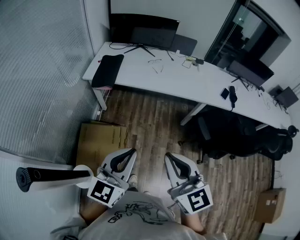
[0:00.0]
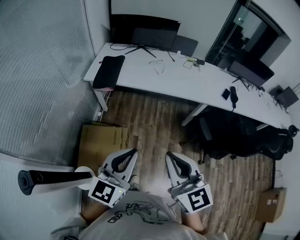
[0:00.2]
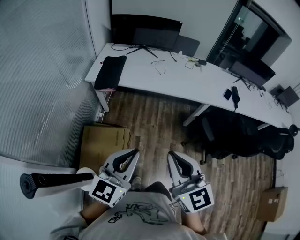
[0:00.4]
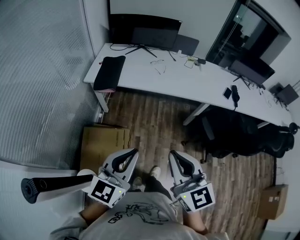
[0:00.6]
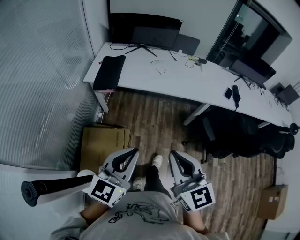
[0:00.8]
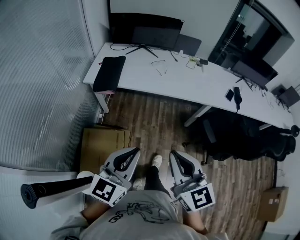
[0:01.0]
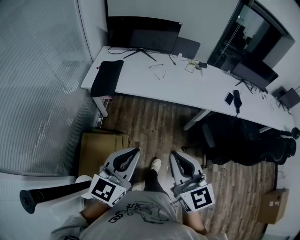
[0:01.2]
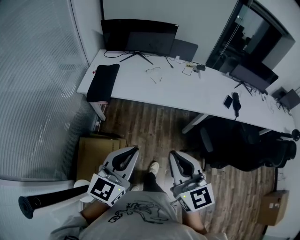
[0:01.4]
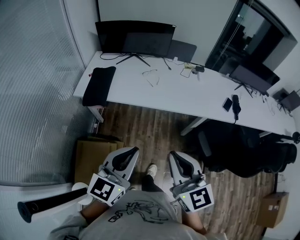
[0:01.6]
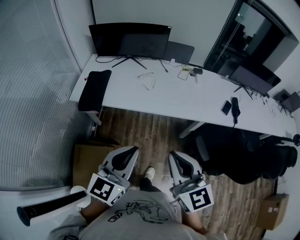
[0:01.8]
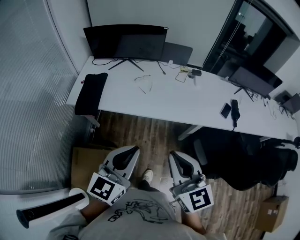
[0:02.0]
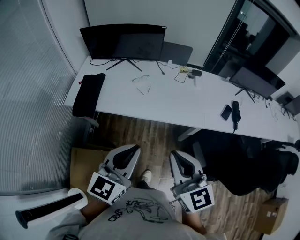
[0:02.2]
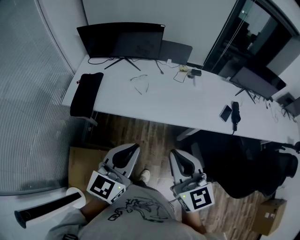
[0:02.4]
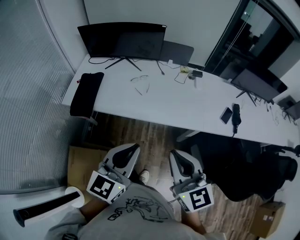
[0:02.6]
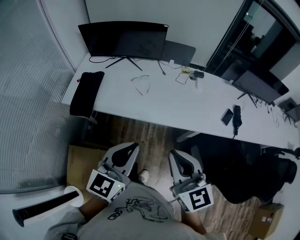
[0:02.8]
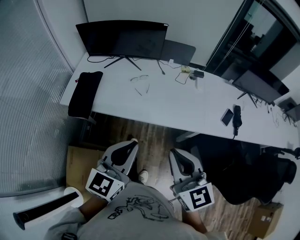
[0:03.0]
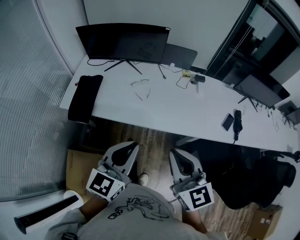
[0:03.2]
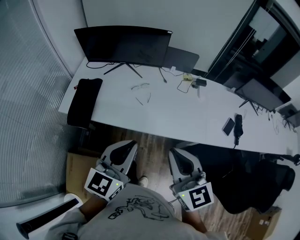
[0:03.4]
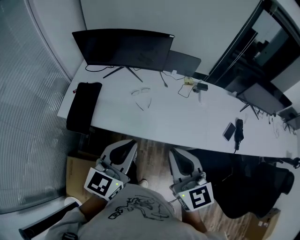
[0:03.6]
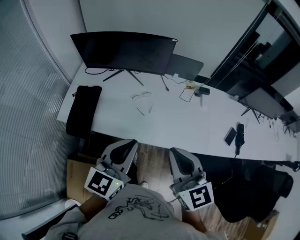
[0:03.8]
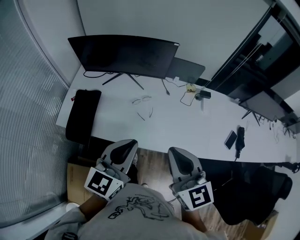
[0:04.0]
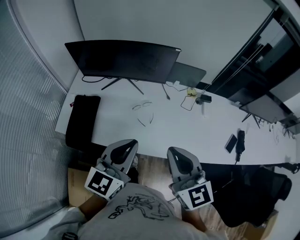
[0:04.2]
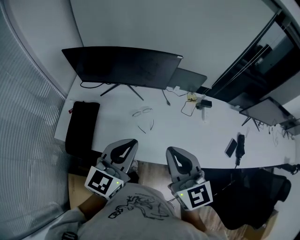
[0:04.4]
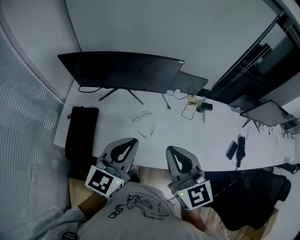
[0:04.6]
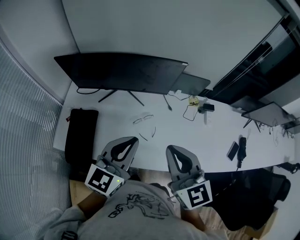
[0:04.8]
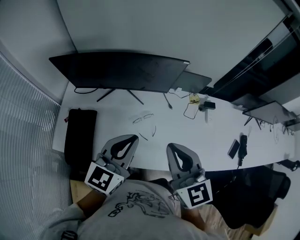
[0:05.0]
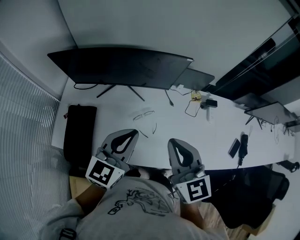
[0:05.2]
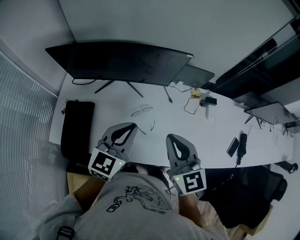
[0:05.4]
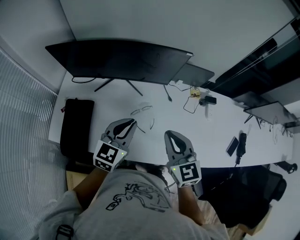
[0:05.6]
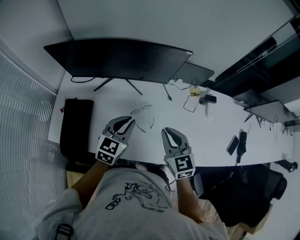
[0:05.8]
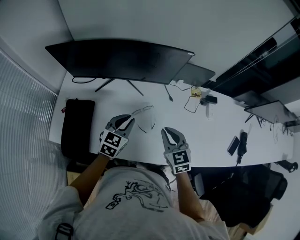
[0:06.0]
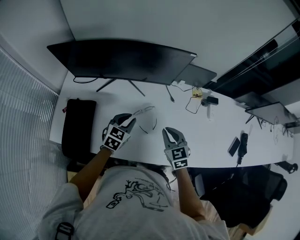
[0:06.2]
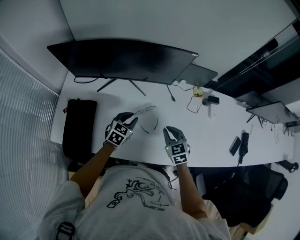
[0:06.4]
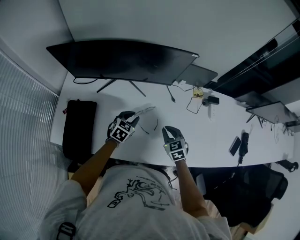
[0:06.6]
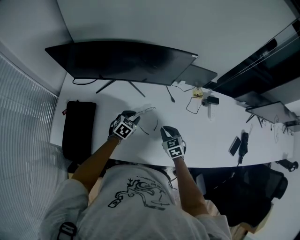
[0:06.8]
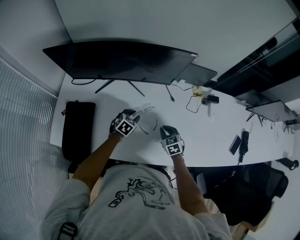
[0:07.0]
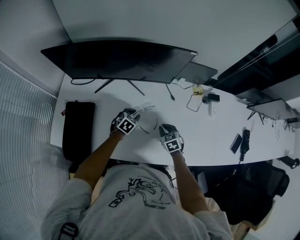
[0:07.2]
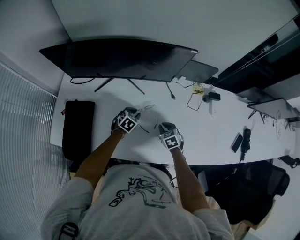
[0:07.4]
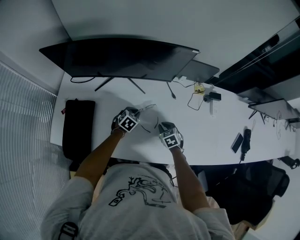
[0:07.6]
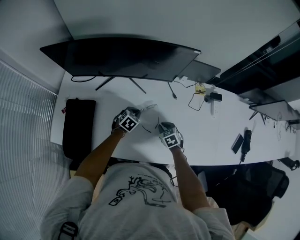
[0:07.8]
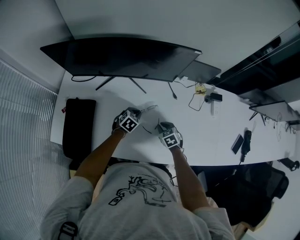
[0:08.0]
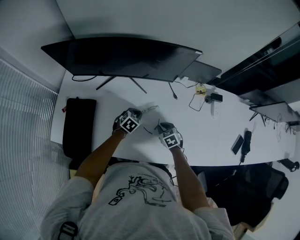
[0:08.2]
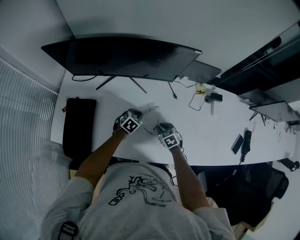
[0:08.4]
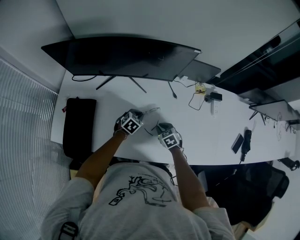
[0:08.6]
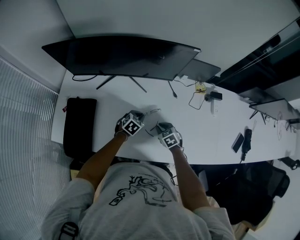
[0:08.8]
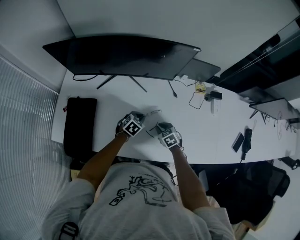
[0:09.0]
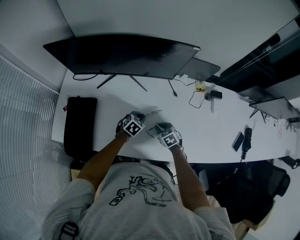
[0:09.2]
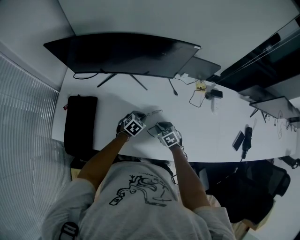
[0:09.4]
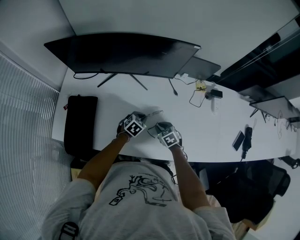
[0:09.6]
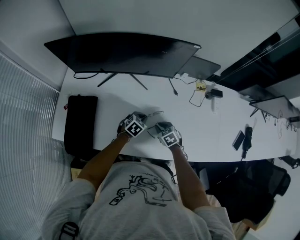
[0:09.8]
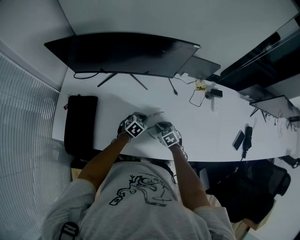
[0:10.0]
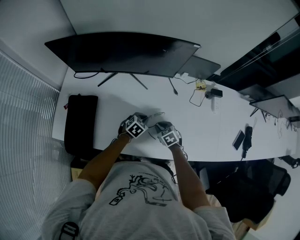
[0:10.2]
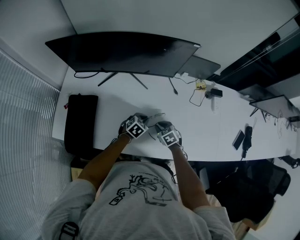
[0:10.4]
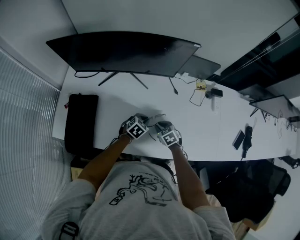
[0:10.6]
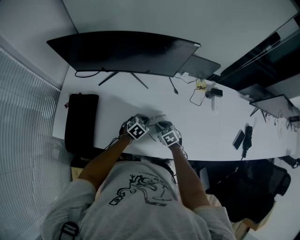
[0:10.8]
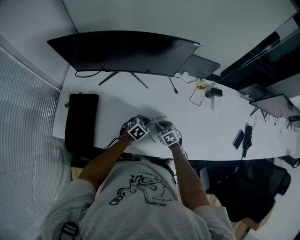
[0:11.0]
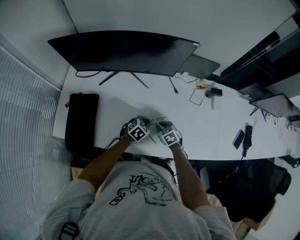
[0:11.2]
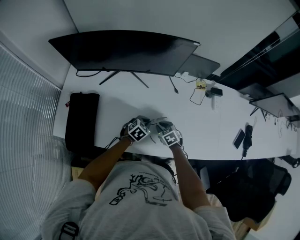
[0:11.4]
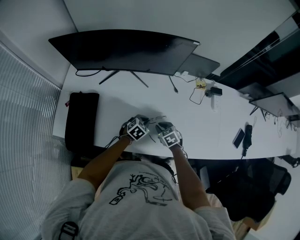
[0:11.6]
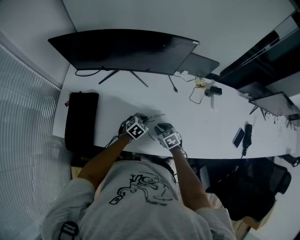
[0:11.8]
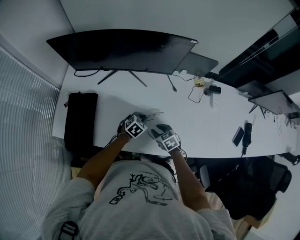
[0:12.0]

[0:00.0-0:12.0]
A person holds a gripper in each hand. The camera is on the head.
0:00.0 to 0:01.6: Both grippers travel together forward, approximately 20 cm.
0:01.6 to 0:03.0: Both grippers travel together forward and to the right, some 25 cm.
0:03.0 to 0:04.4: The grippers both shift forward by approximately 30 cm.
0:04.4 to 0:06.0: Both grippers move downward and forward, approximately 30 cm. The right gripper turns by approximately 20 degrees; the left gripper rotates roughly 20 degrees.
0:06.0 to 0:07.6: Both grippers travel together downward, roughly 20 cm. The left gripper swivels roughly 30 degrees; the right gripper turns by approximately 30 degrees.
0:07.6 to 0:09.0: There are only small adjustments of the grippers.
0:09.0 to 0:10.4: The grippers make only small movements.
0:10.4 to 0:12.0: The right gripper ends up approximately 5 cm from where it was.

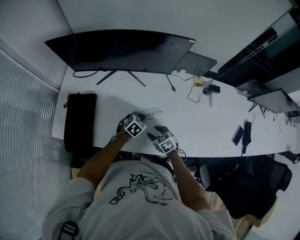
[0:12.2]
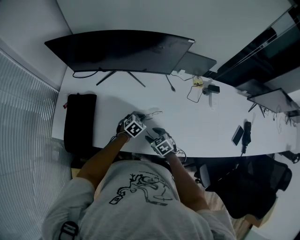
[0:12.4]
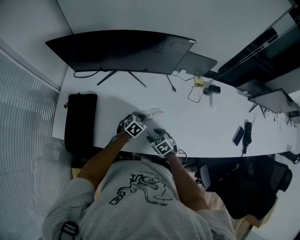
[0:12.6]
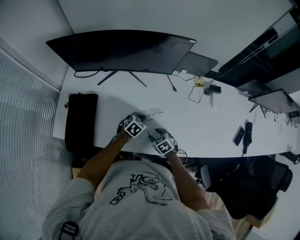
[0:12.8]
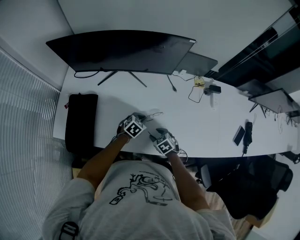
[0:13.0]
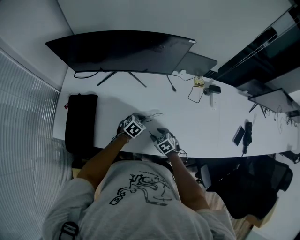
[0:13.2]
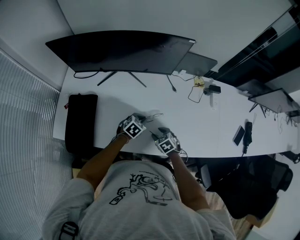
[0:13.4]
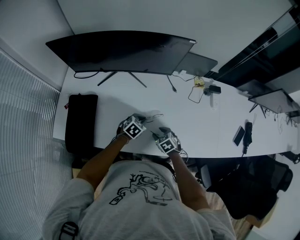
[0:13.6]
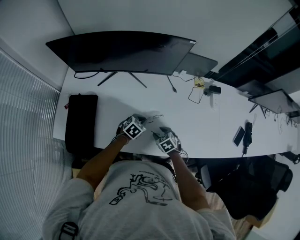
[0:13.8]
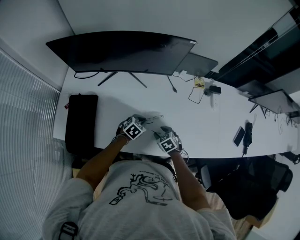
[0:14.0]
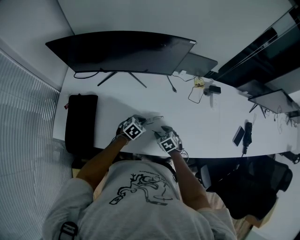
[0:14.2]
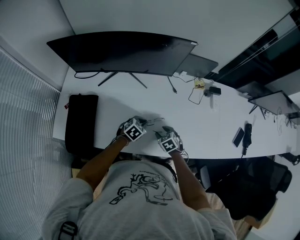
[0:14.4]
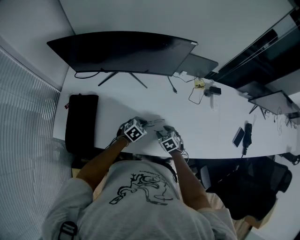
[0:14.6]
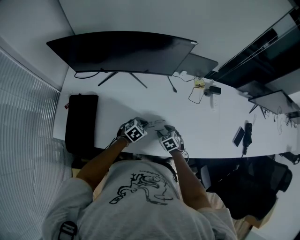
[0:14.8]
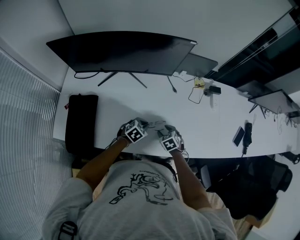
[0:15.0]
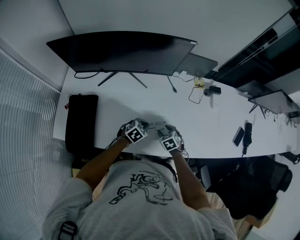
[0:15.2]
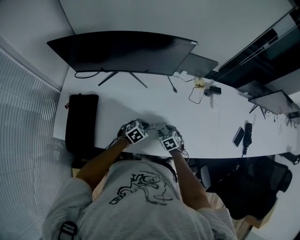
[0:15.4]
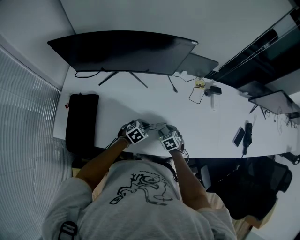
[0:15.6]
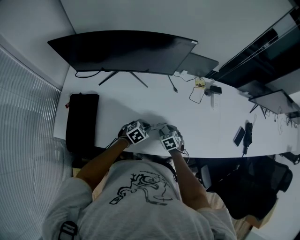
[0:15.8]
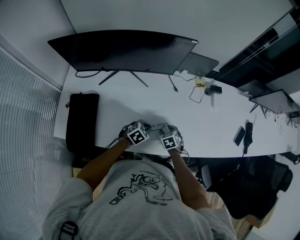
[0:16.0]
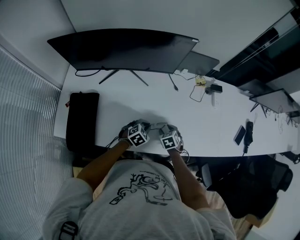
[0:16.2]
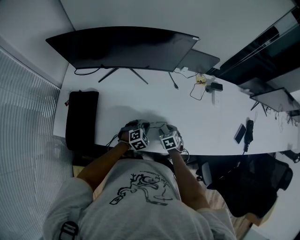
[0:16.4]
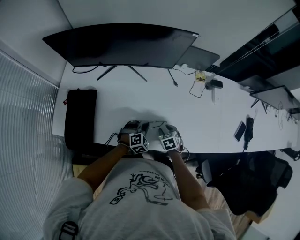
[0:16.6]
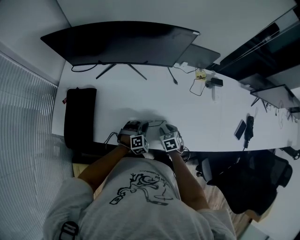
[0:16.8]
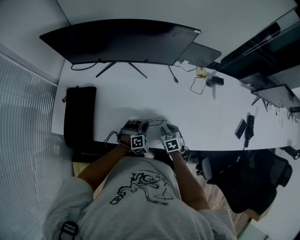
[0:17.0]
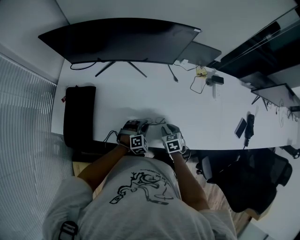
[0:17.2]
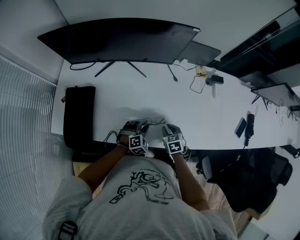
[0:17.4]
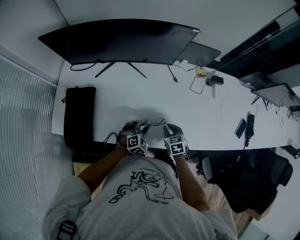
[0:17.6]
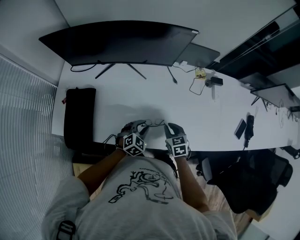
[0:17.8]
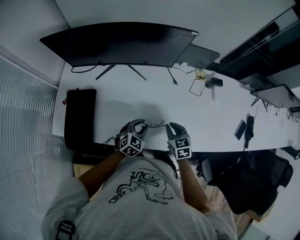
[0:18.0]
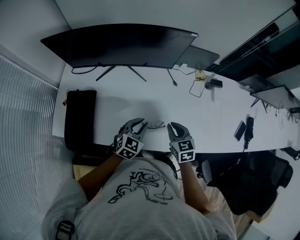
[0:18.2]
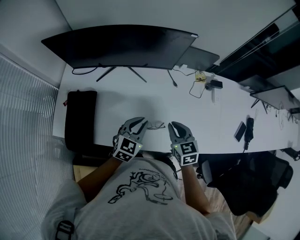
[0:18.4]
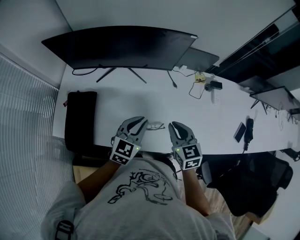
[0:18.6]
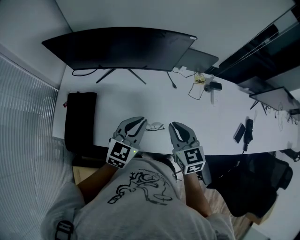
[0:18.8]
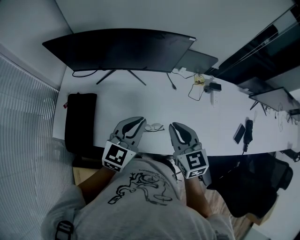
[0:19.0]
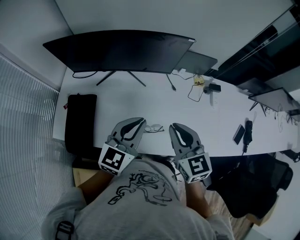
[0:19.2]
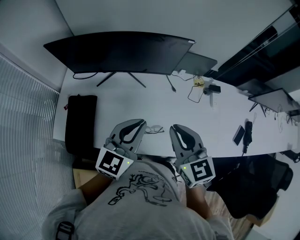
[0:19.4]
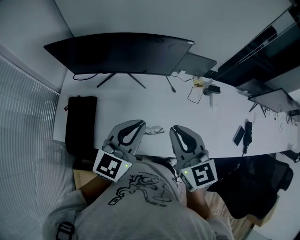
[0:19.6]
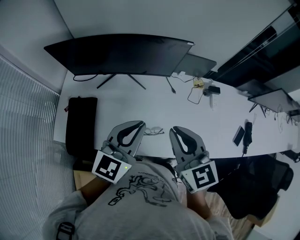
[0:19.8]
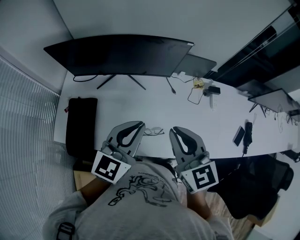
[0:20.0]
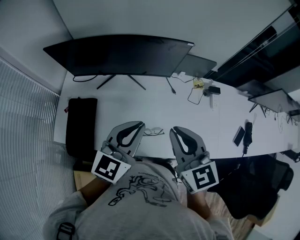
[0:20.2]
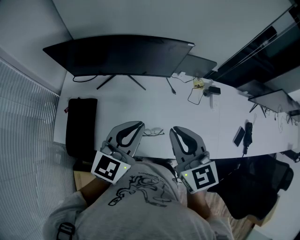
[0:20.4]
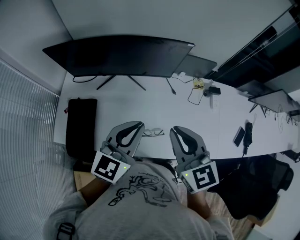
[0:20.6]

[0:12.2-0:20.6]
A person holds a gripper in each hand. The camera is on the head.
0:12.2 to 0:13.6: The grippers move only a little.
0:13.6 to 0:15.0: The grippers make only small movements.
0:15.0 to 0:16.4: The left gripper turns by approximately 20 degrees.
0:16.4 to 0:17.8: The right gripper heads upward, covering approximately 10 cm, and closes up. Meanwhile the left gripper opens up.
0:17.8 to 0:19.2: Both grippers travel together upward, some 30 cm. The left gripper tips its fingers upward by approximately 30 degrees, and closes; the right gripper turns by about 30 degrees.
0:19.2 to 0:20.6: The two grippers go about 5 cm upward.

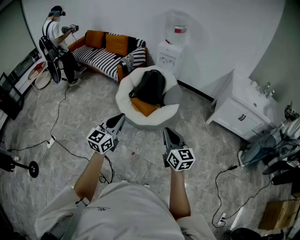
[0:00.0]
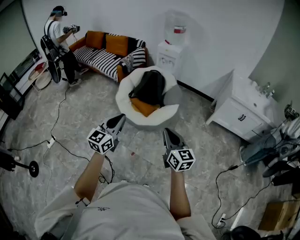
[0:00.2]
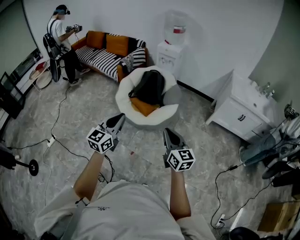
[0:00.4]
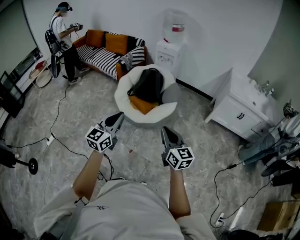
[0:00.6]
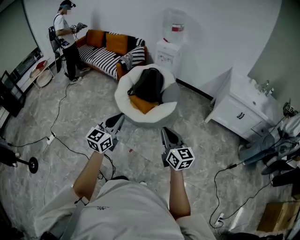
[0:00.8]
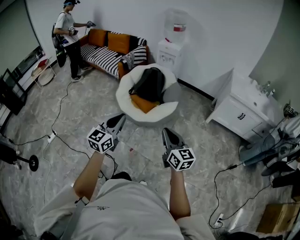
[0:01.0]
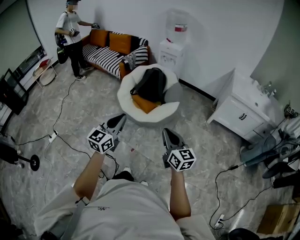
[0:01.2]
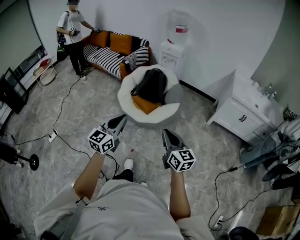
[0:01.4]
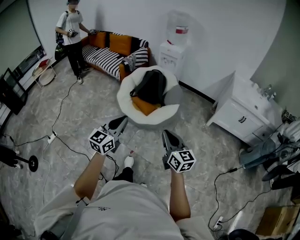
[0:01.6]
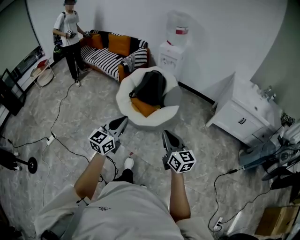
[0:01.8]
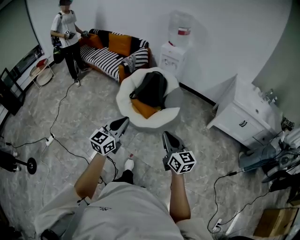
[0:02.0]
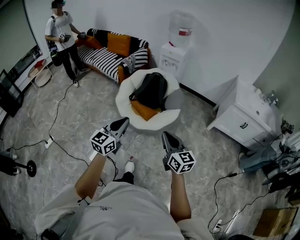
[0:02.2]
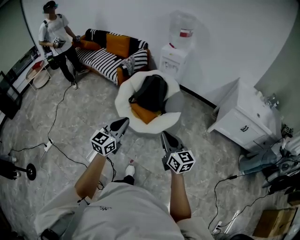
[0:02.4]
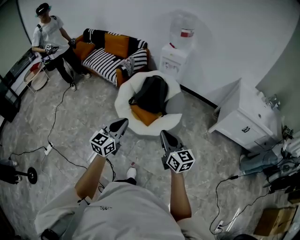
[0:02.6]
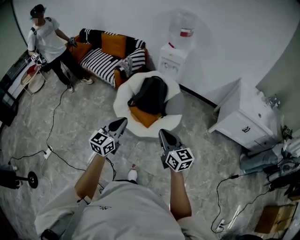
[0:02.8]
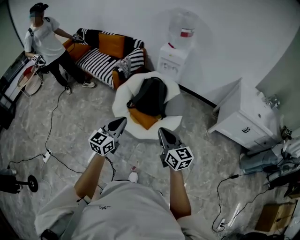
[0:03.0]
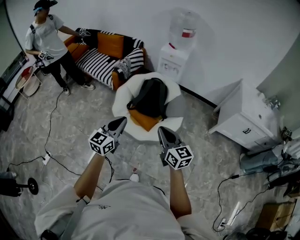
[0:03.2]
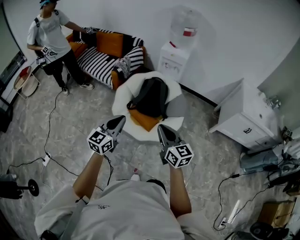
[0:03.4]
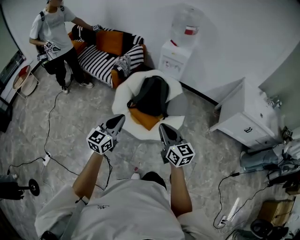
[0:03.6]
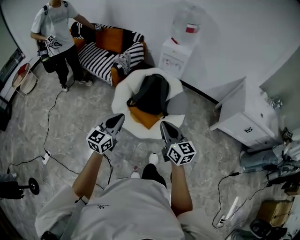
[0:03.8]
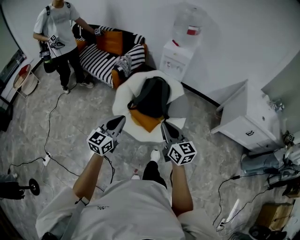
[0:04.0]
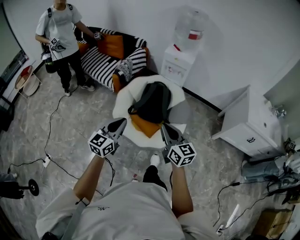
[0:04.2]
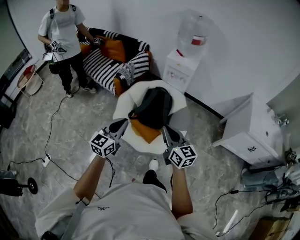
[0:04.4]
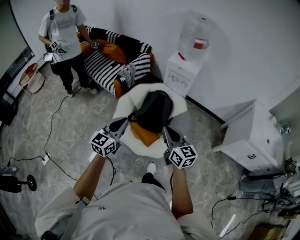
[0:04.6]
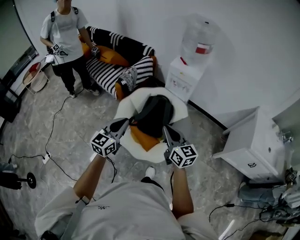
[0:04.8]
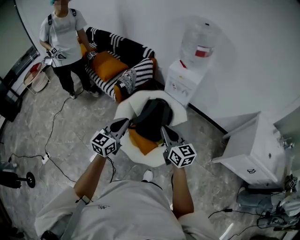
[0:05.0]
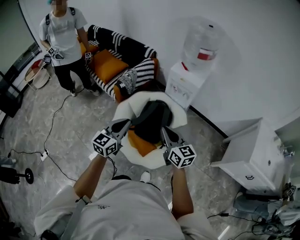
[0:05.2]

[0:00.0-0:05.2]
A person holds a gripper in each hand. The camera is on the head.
0:01.8 to 0:03.4: The grippers both shift forward and to the left by some 35 cm.
0:03.4 to 0:05.2: The two grippers go roughly 30 cm forward.
